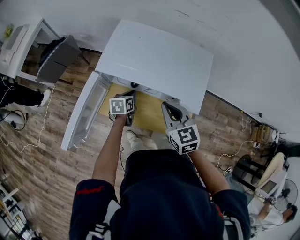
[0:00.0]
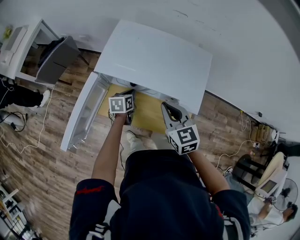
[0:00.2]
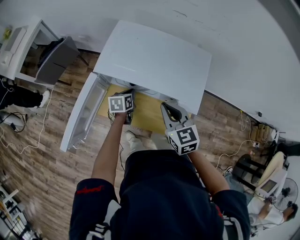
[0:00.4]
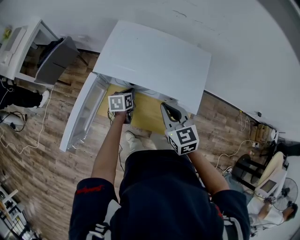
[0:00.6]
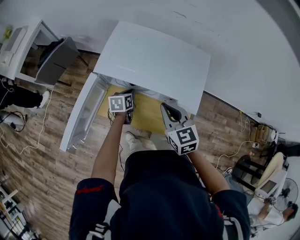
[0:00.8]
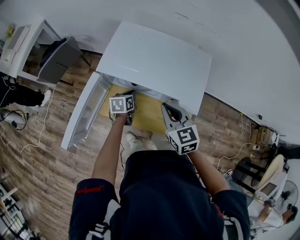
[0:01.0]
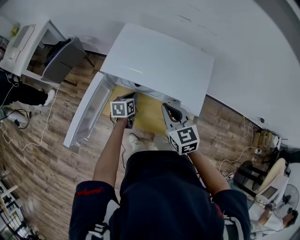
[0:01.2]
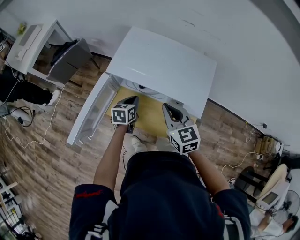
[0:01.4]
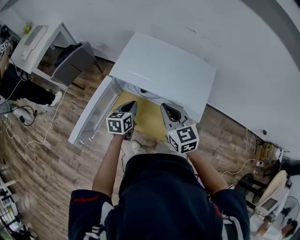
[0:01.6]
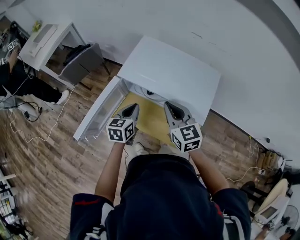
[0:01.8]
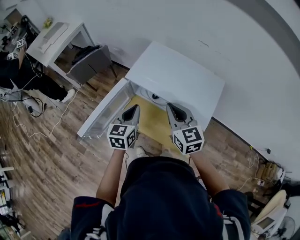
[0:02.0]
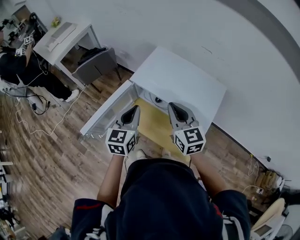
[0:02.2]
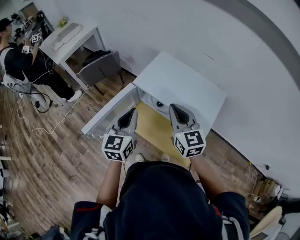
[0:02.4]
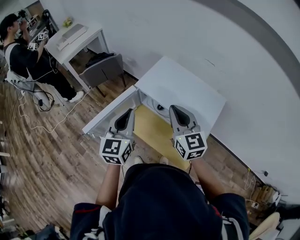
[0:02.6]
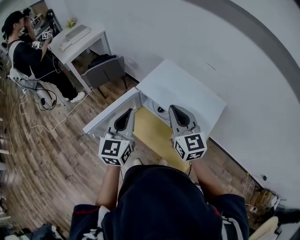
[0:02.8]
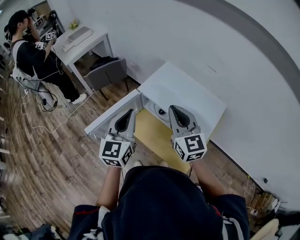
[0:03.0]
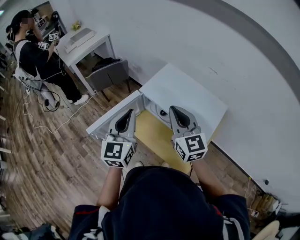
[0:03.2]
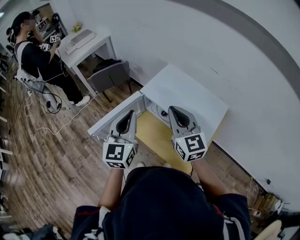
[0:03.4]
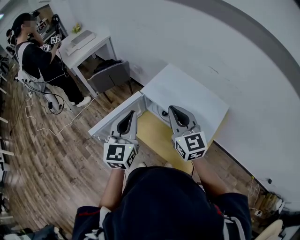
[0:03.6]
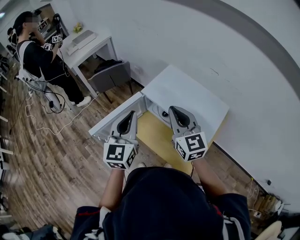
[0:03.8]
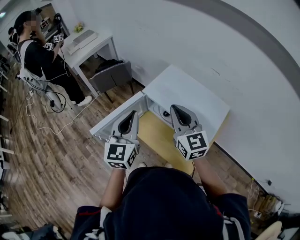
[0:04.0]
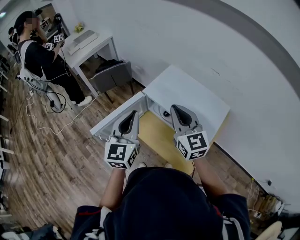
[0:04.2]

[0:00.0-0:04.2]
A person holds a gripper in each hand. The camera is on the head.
0:01.4 to 0:02.8: The right gripper is displaced upward by approximately 15 cm, and changes its angle by about 20 degrees.

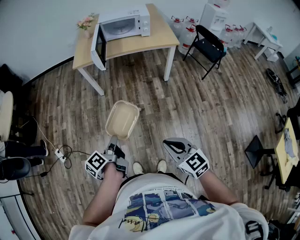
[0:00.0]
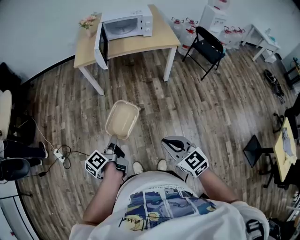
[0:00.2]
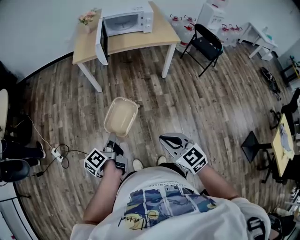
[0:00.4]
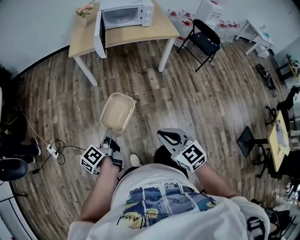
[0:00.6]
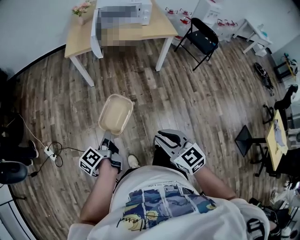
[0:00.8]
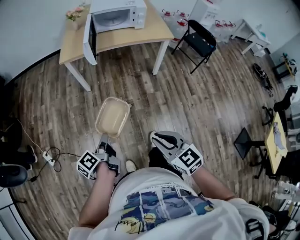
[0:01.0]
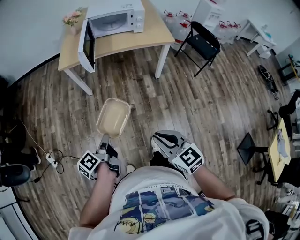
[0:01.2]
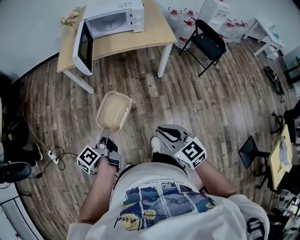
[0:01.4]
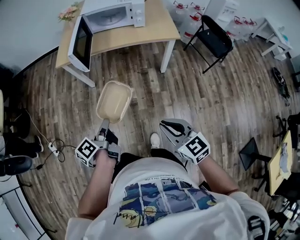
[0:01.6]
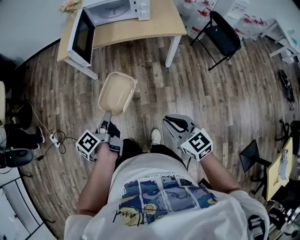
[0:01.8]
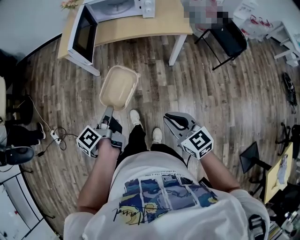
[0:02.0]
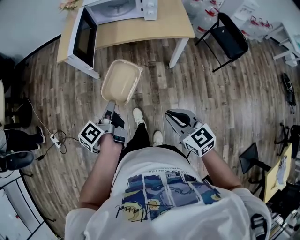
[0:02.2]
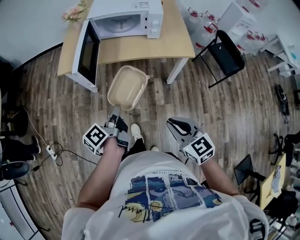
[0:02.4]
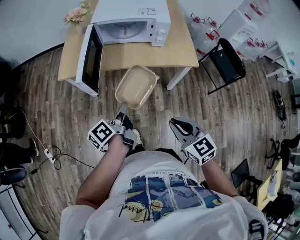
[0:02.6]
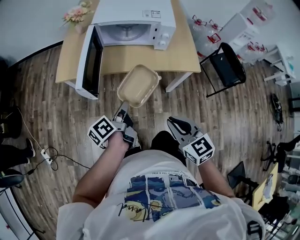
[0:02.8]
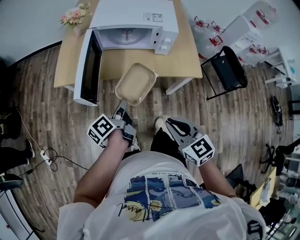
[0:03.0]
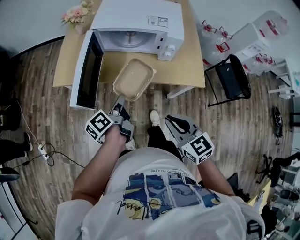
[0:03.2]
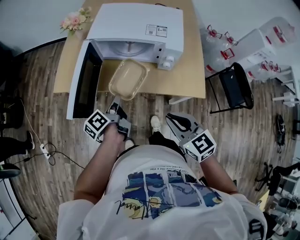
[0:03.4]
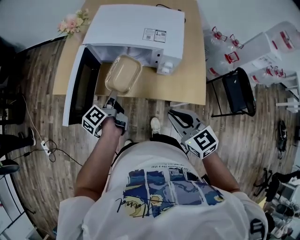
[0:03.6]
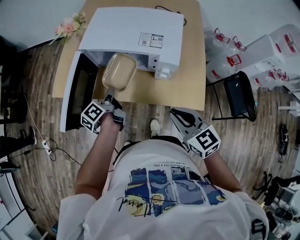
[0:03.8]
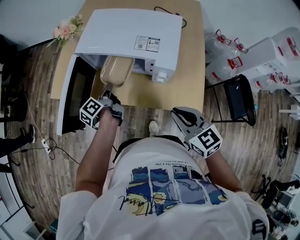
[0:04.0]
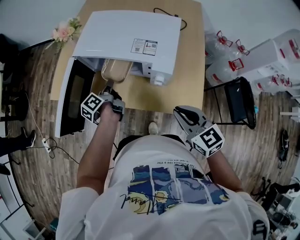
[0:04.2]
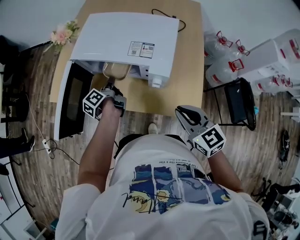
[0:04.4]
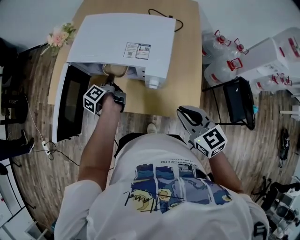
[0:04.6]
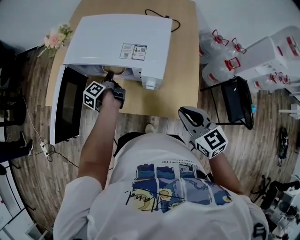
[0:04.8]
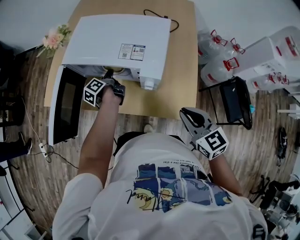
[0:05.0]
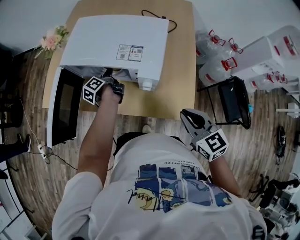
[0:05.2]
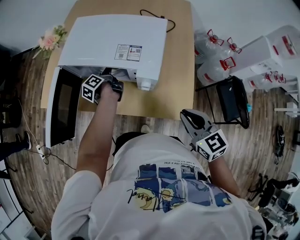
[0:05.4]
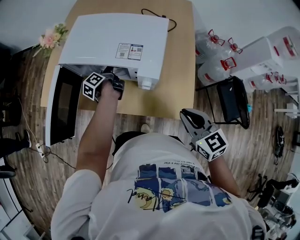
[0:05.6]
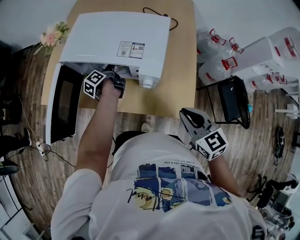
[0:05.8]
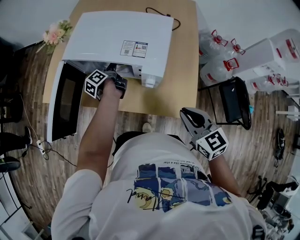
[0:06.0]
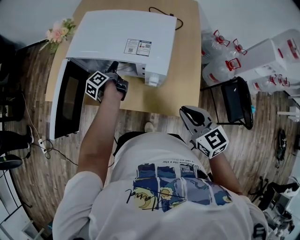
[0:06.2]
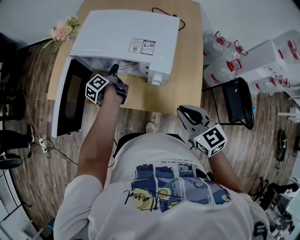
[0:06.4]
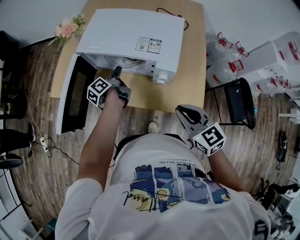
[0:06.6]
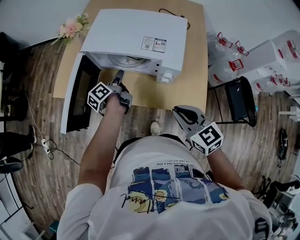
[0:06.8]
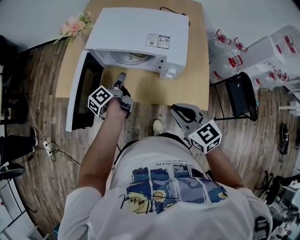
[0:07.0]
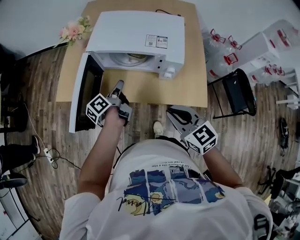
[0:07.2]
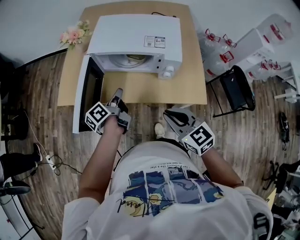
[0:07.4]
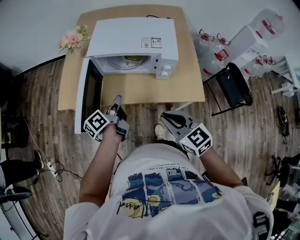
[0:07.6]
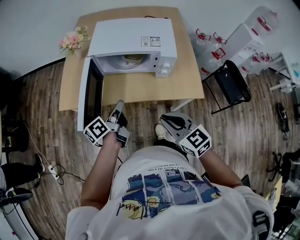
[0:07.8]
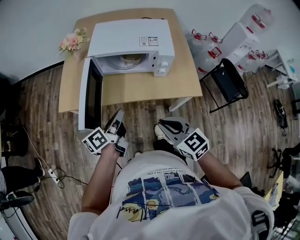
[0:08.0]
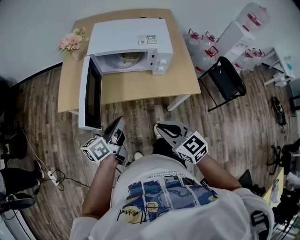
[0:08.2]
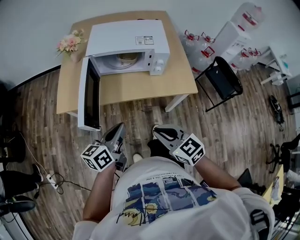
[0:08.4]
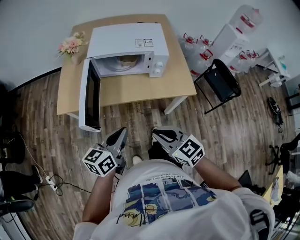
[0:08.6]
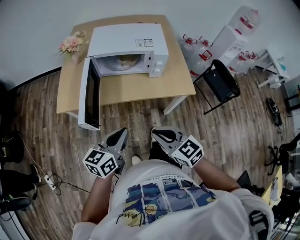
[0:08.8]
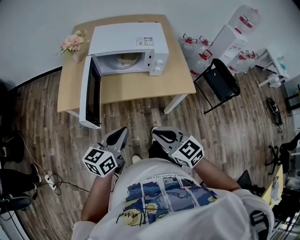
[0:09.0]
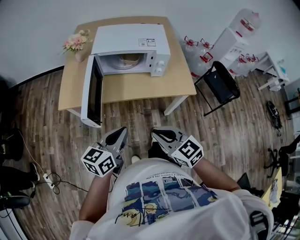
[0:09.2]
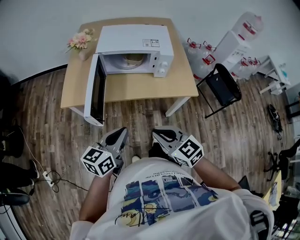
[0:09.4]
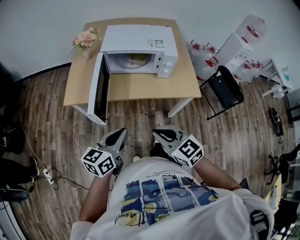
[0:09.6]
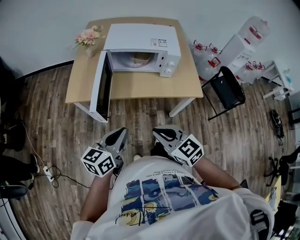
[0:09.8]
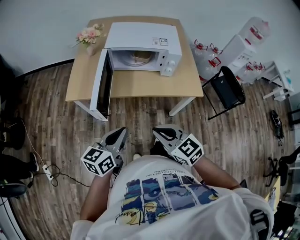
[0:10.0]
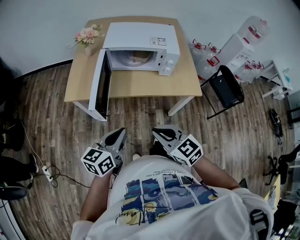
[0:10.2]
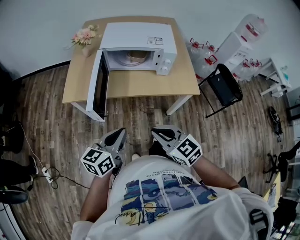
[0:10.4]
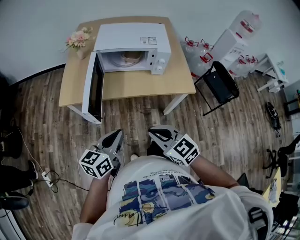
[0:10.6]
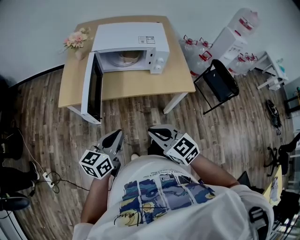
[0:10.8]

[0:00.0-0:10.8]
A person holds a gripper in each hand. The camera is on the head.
0:00.0 to 0:01.6: Both grippers move forward and to the right, approximately 20 cm.
0:01.6 to 0:03.0: Both grippers move forward, roughly 35 cm.
0:03.0 to 0:04.6: The left gripper goes roughly 35 cm forward and to the right, and swivels some 20 degrees. The right gripper heads to the right and forward, covering roughly 35 cm.
0:04.6 to 0:06.2: The left gripper opens.
0:06.2 to 0:07.8: The left gripper goes approximately 30 cm backward, to the left and upward, turns by roughly 30 degrees, and closes. Meanwhile the right gripper goes about 20 cm to the left.
0:07.8 to 0:09.2: The left gripper heads backward, covering roughly 20 cm, and rolls clockwise, seen from behind, by roughly 40 degrees; the right gripper goes some 15 cm backward and to the left.
0:09.2 to 0:10.8: The grippers move only a little.

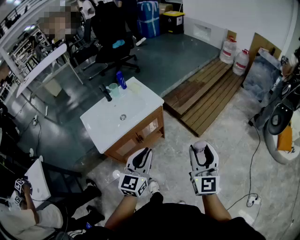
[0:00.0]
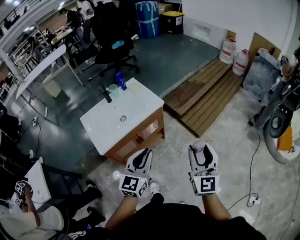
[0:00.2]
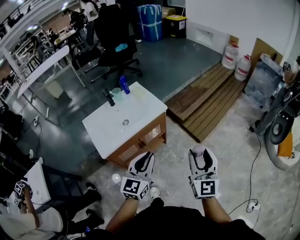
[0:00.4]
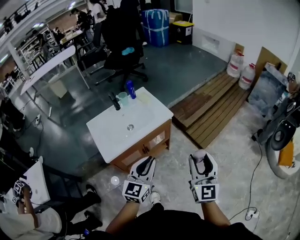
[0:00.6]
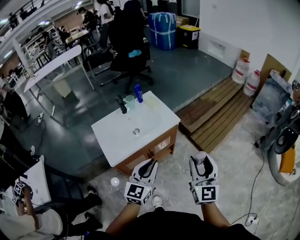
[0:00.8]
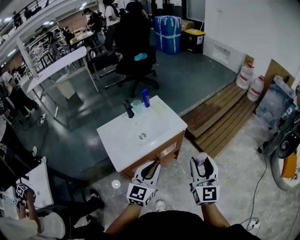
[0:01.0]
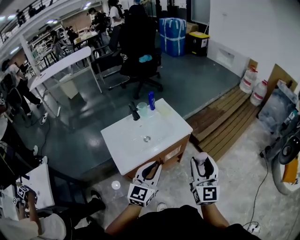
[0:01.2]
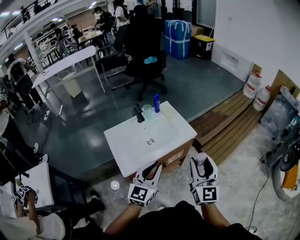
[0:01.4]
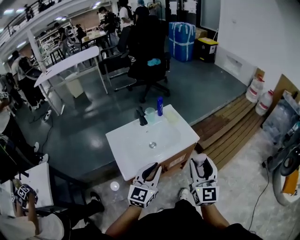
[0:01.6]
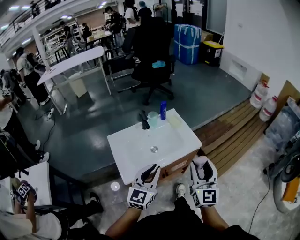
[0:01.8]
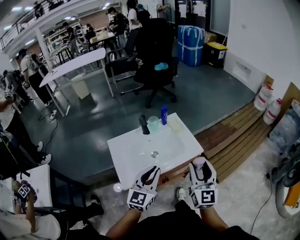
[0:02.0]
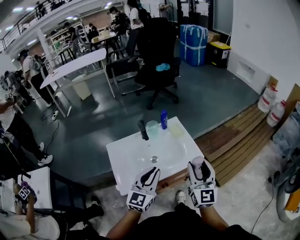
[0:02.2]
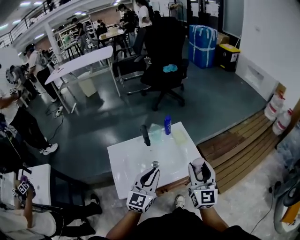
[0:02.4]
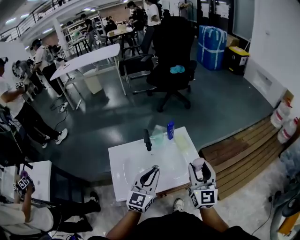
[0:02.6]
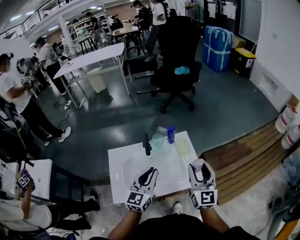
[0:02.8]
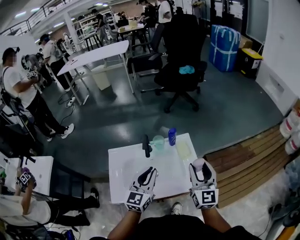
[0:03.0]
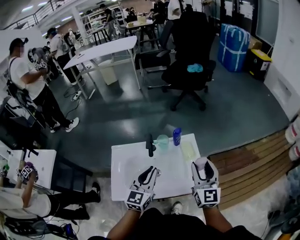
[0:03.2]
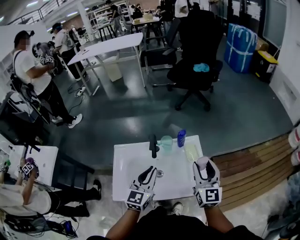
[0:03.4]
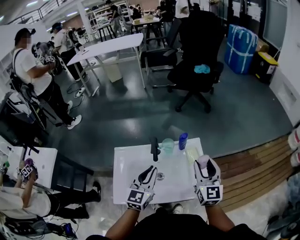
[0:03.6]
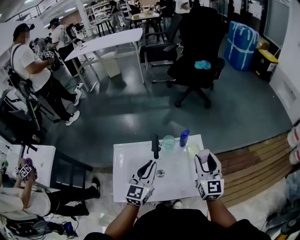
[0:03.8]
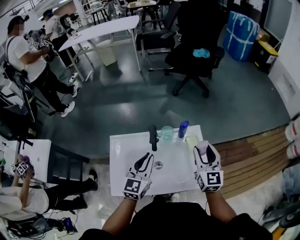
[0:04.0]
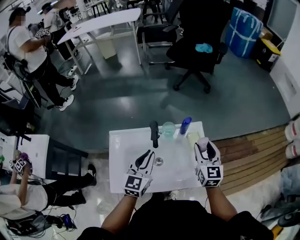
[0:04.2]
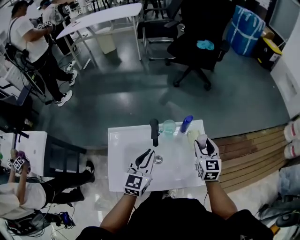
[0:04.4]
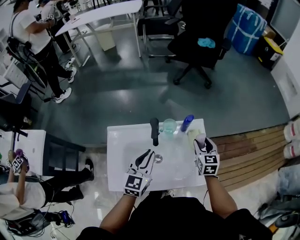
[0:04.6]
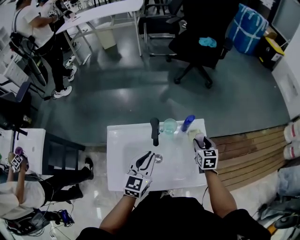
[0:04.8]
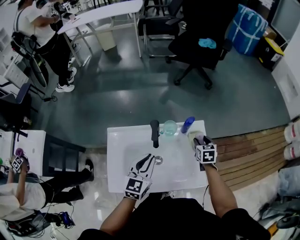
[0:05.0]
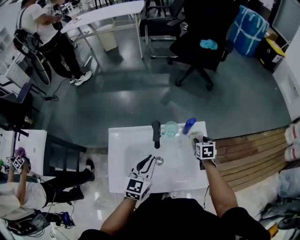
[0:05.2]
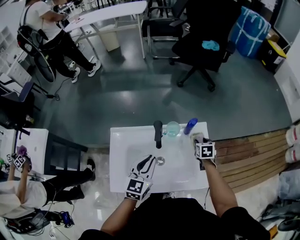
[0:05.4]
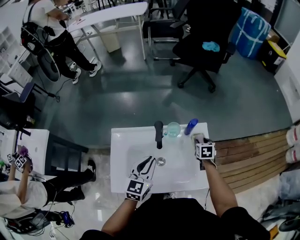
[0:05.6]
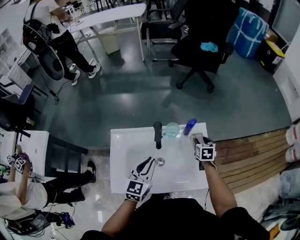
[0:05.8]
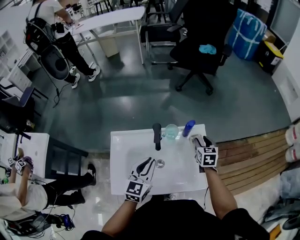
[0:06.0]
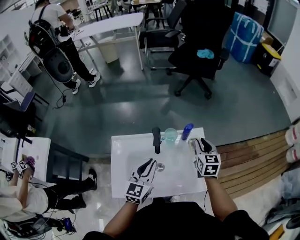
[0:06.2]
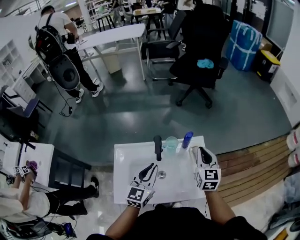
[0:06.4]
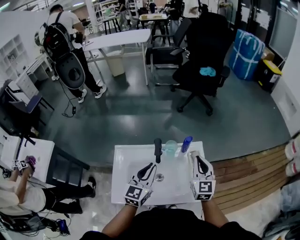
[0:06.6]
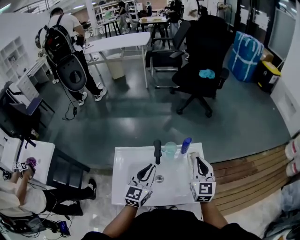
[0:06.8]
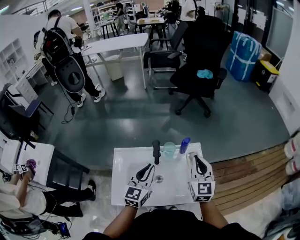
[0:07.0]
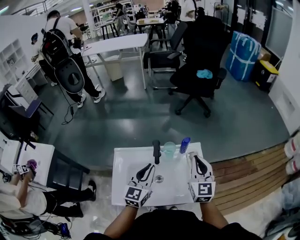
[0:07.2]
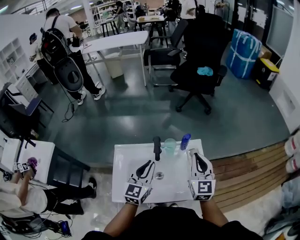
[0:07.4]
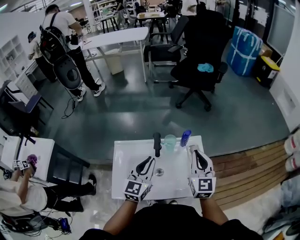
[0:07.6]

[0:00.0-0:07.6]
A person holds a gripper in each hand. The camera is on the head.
0:00.0 to 0:01.6: Both grippers travel together to the left and forward, about 25 cm.
0:01.6 to 0:03.0: The two grippers go approximately 25 cm forward. The right gripper swivels approximately 20 degrees. Meanwhile the left gripper swivels some 20 degrees.
0:03.0 to 0:04.6: The left gripper is displaced downward, to the left and forward by roughly 10 cm. The right gripper moves downward and forward, about 25 cm, and points its fingers approximately 30 degrees further downward.
0:04.6 to 0:06.0: The right gripper moves roughly 10 cm downward and comes back.
0:06.0 to 0:07.6: The left gripper is displaced upward by about 10 cm. The right gripper shifts roughly 20 cm upward and backward, angles its fingers upward, by some 30 degrees, and closes.

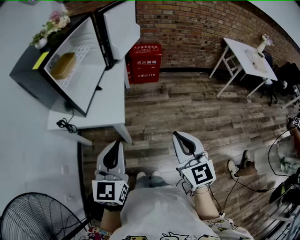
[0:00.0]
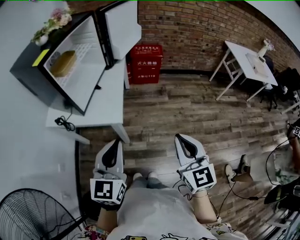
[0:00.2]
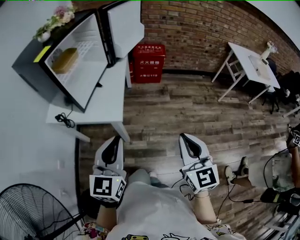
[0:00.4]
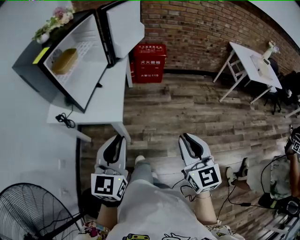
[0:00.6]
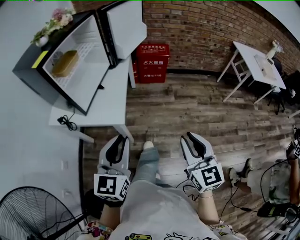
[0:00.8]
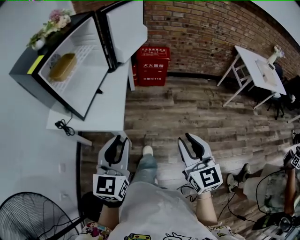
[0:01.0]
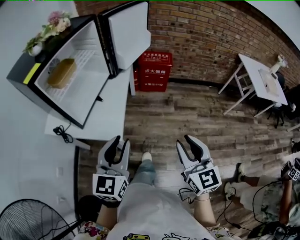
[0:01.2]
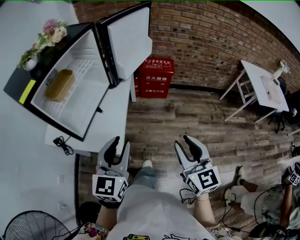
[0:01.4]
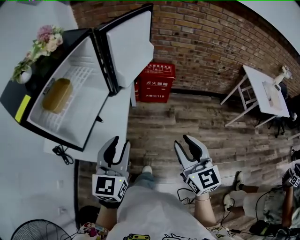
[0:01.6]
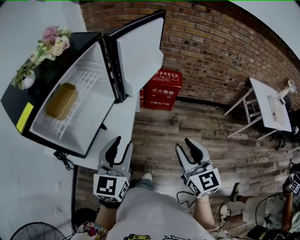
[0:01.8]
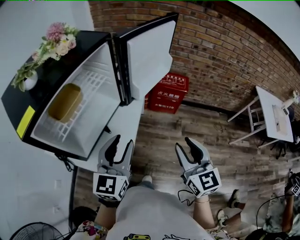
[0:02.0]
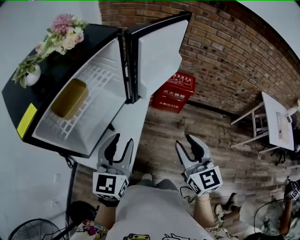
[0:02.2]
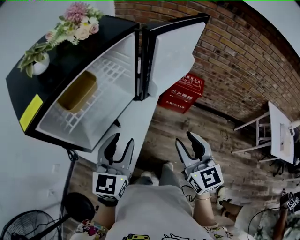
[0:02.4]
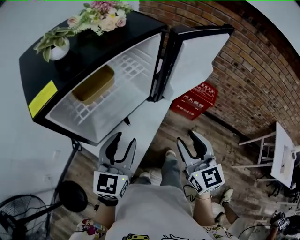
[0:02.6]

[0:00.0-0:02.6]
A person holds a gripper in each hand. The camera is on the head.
0:00.0 to 0:01.2: The right gripper travels forward and to the right by roughly 10 cm, while the left gripper moves forward, roughly 10 cm, and opens its fingers.
0:01.2 to 0:02.6: The right gripper shifts roughly 30 cm forward, and rotates roughly 30 degrees; the left gripper moves forward and to the left, approximately 20 cm, and changes its angle by some 20 degrees.
